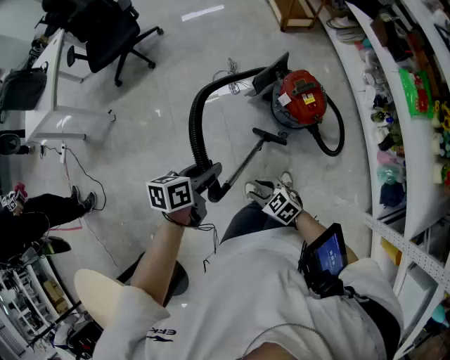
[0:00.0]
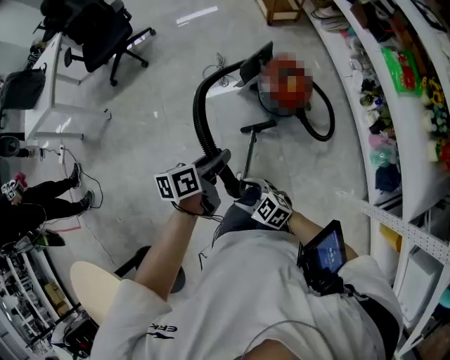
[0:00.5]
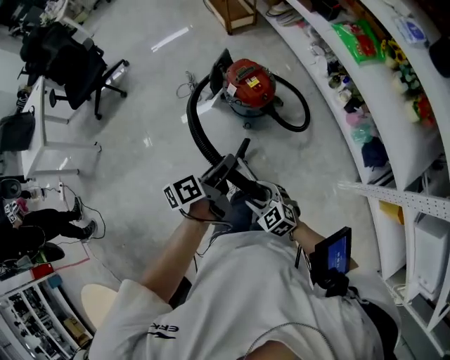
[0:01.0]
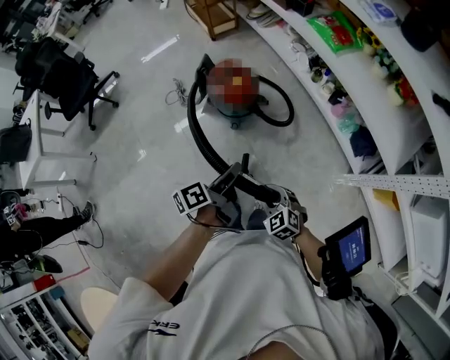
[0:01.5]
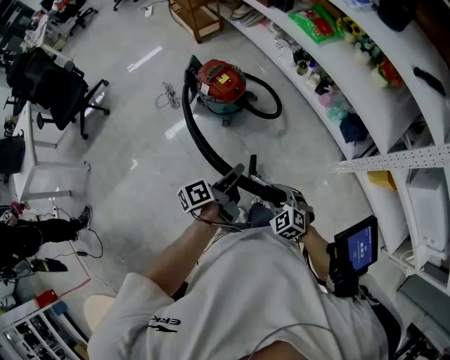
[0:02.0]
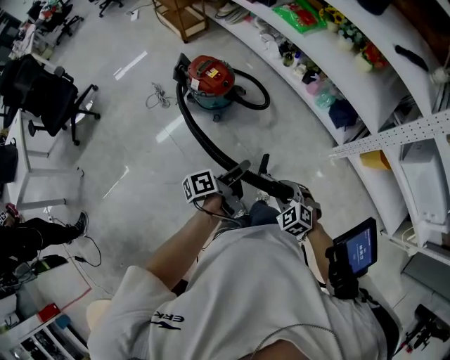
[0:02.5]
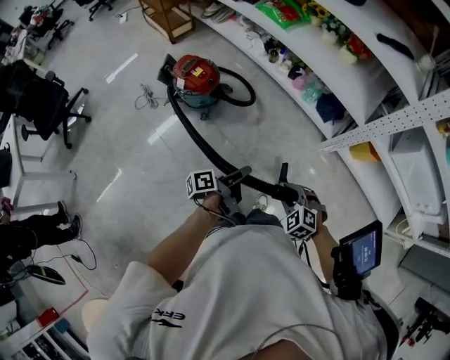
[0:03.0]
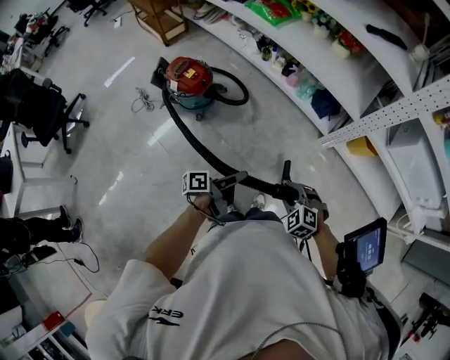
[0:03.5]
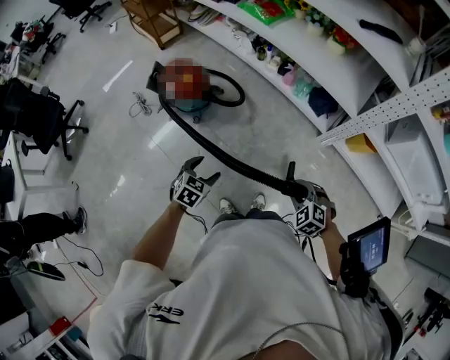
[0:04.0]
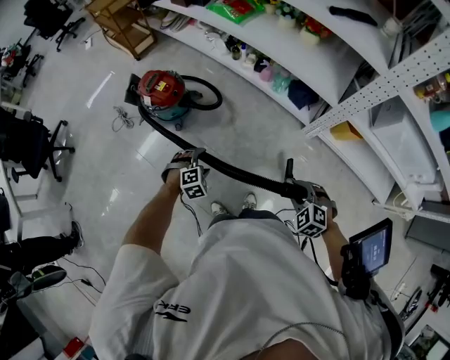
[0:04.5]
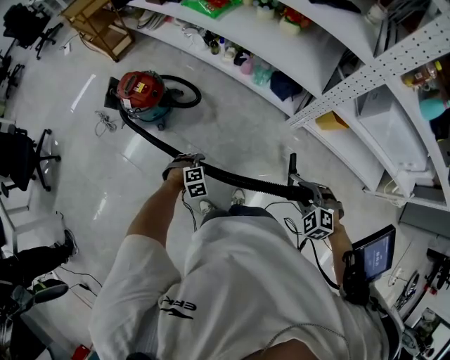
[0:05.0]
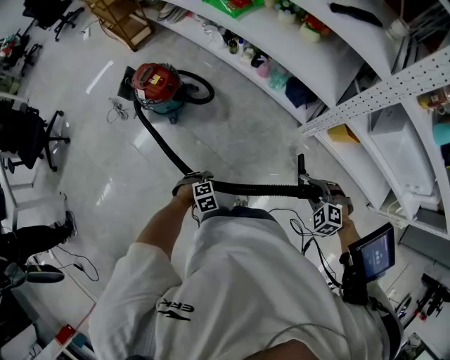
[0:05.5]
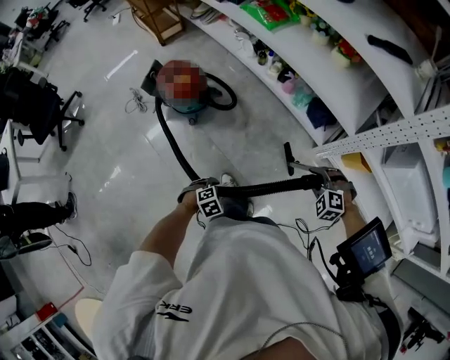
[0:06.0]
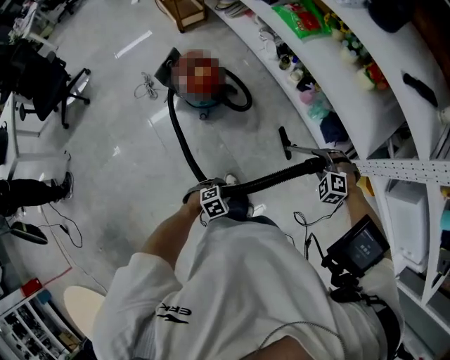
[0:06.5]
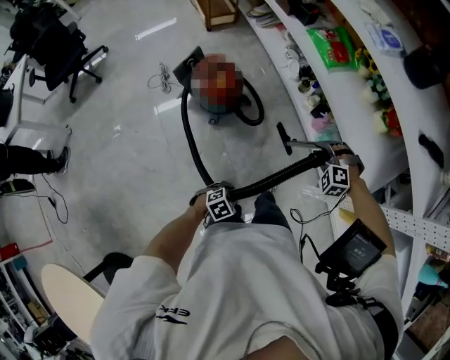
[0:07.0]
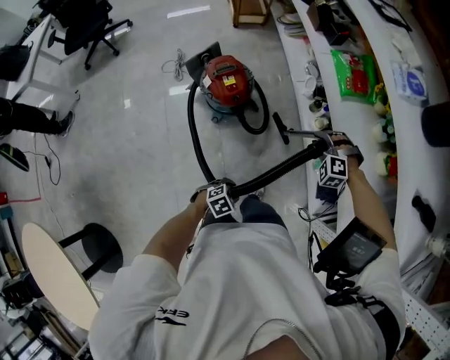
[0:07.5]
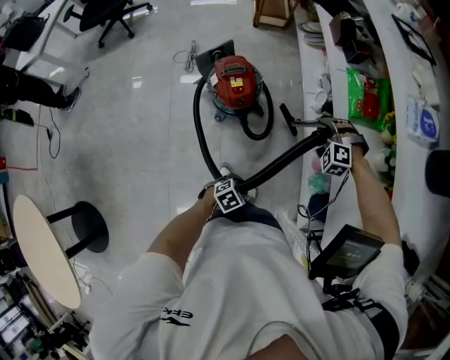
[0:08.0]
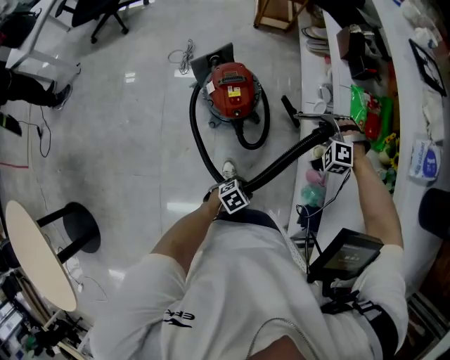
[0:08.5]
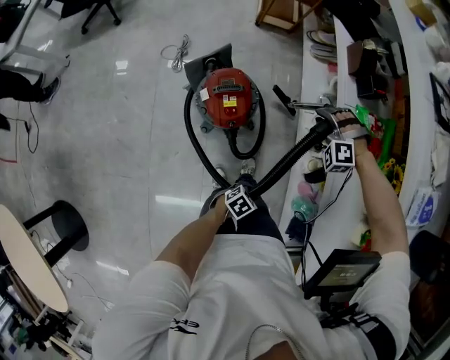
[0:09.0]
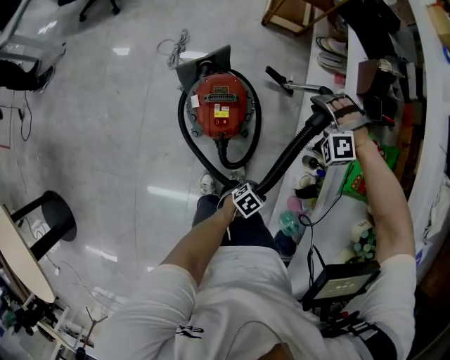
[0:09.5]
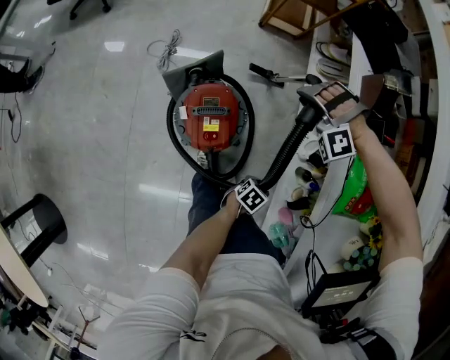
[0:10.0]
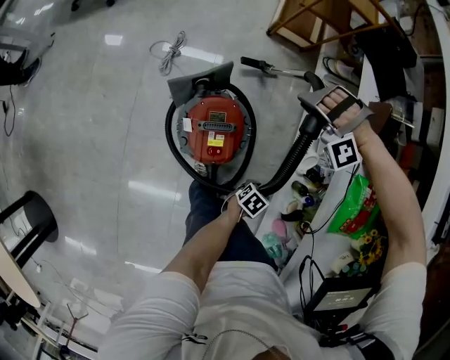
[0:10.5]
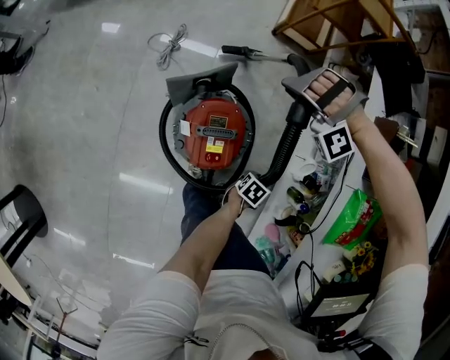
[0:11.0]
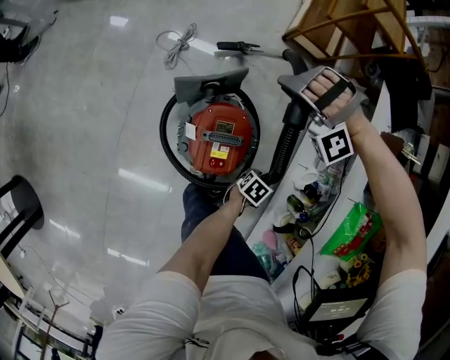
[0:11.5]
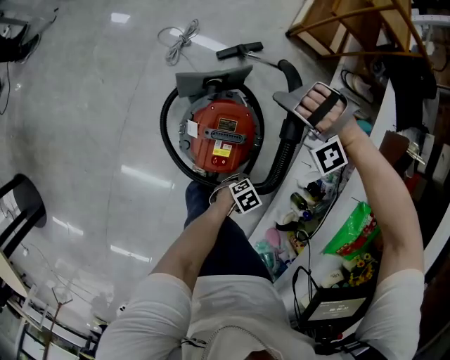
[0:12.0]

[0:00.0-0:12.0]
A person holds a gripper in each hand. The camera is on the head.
0.0 to 2.0 s: The left gripper moves about 35 cm, and changes its angle by roughly 30 degrees. The right gripper moves about 35 cm, rotates approximately 40 degrees, and opens and closes again.
2.0 to 4.0 s: The left gripper is displaced downward and backward by about 10 cm, moves about 15 cm to the right and comes back, twists roughly 90 degrees clockwise, seen from behind, and opens. The right gripper goes roughly 20 cm to the right.
4.0 to 6.0 s: The right gripper shifts by some 15 cm, and swivels some 20 degrees. The left gripper travels downward by roughly 10 cm, and changes its angle by roughly 40 degrees.
6.0 to 8.0 s: The left gripper shifts by some 30 cm, and rotates around the line of its fingers by some 50 degrees, counterclockwise from behind, while the right gripper shifts by roughly 60 cm, and rolls counterclockwise, seen from behind, by approximately 40 degrees.
8.0 to 10.0 s: The right gripper moves to the left and forward, about 40 cm, and rotates approximately 40 degrees. The left gripper is displaced forward by roughly 40 cm, and rotates some 30 degrees.
10.0 to 12.0 s: The right gripper moves approximately 20 cm, and swivels some 30 degrees; the left gripper ends up roughly 15 cm from where it was.

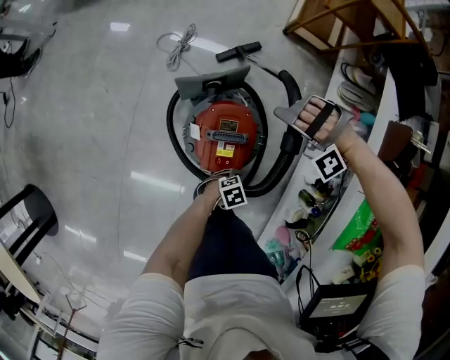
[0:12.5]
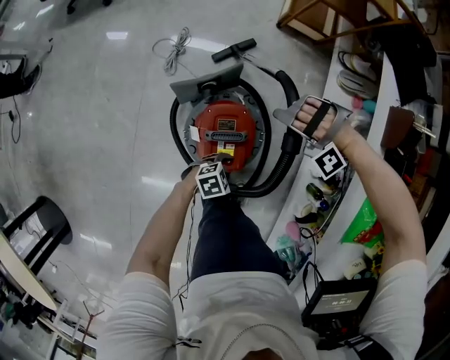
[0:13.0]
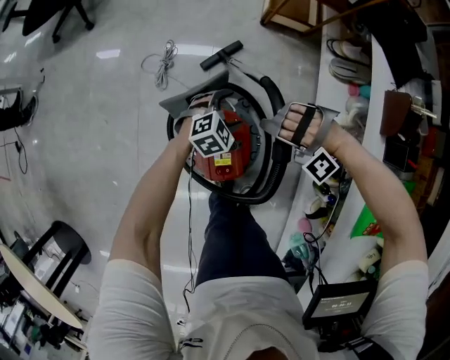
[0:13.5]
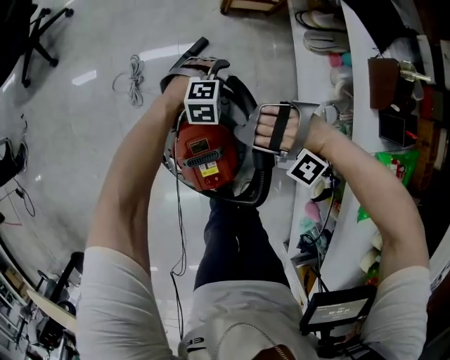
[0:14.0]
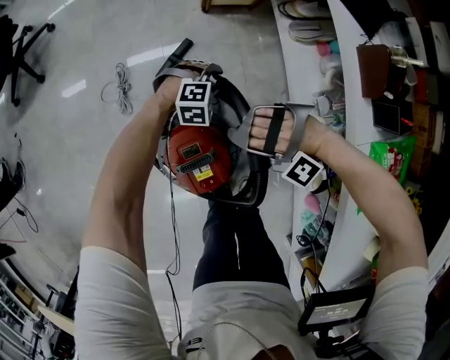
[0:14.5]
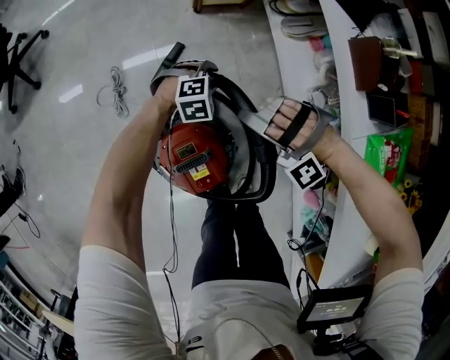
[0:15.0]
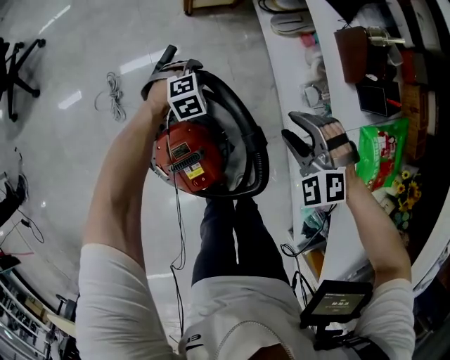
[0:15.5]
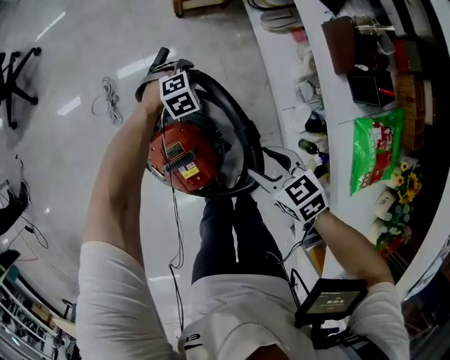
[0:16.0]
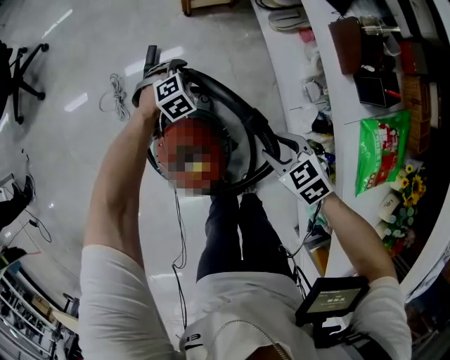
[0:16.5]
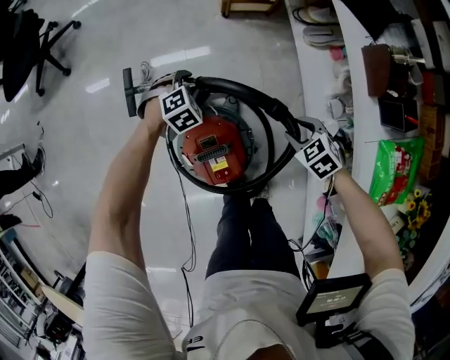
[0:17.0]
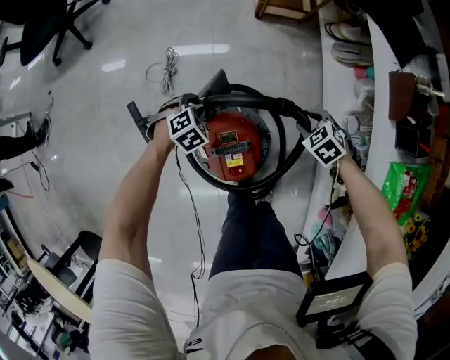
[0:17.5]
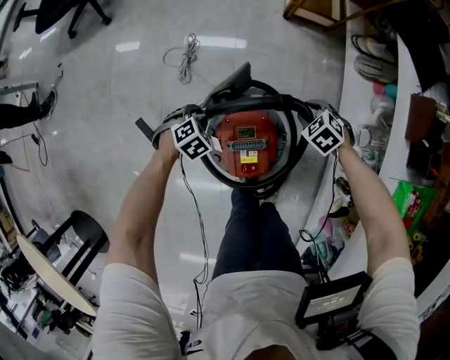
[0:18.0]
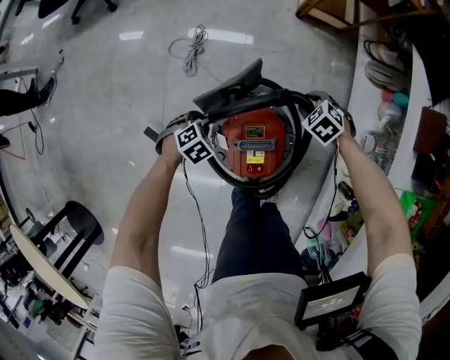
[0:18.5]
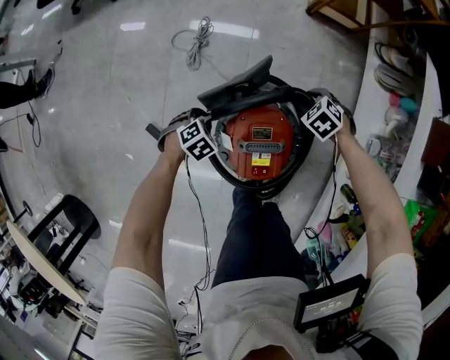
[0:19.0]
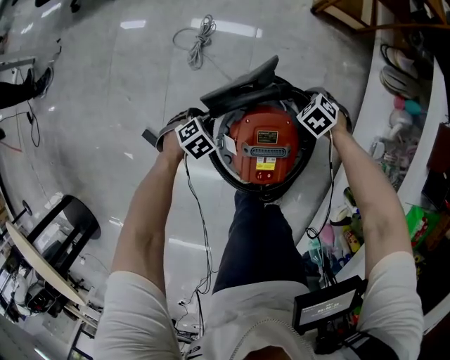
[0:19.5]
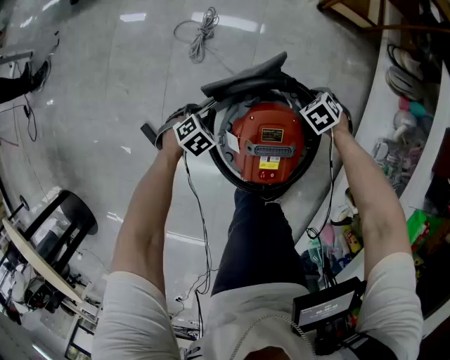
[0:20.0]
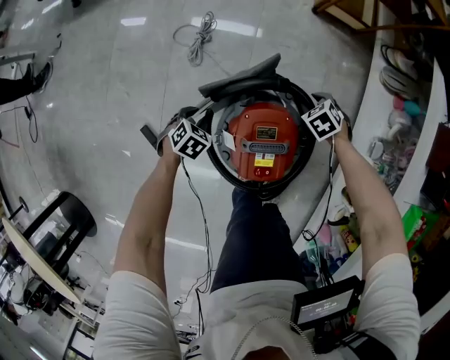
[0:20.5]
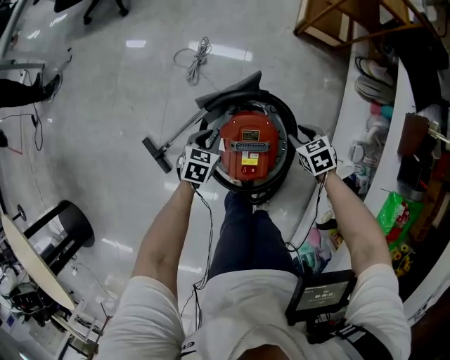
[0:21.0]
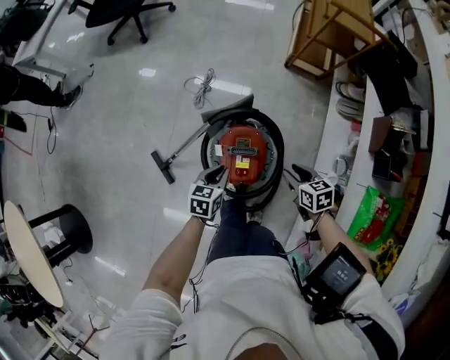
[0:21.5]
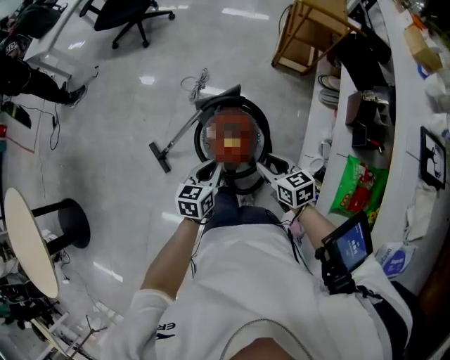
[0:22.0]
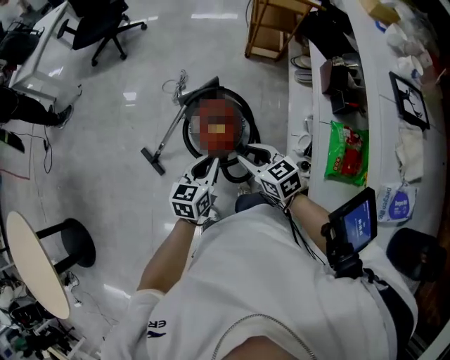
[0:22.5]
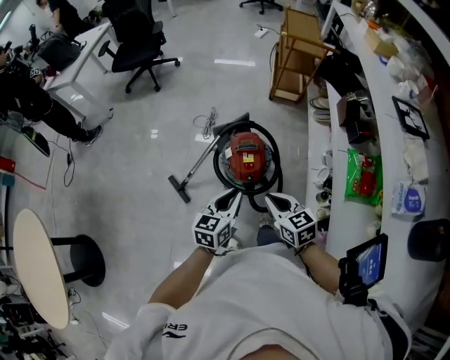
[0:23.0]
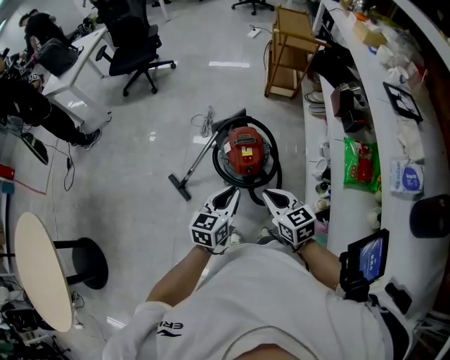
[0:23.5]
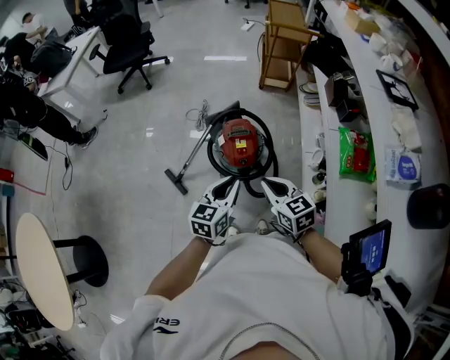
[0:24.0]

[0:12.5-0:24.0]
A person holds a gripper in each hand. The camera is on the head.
12.5 to 14.5 s: The left gripper ends up approximately 40 cm from where it was, twists approximately 60 degrees clockwise, seen from behind, and closes its fingers.
14.5 to 16.5 s: The left gripper changes its angle by about 20 degrees, while the right gripper ends up approximately 15 cm from where it was, and twists roughly 130 degrees clockwise, seen from behind.
16.5 to 18.5 s: The right gripper changes place by some 25 cm, and rotates some 40 degrees, while the left gripper changes place by approximately 35 cm, and swivels about 40 degrees.
18.5 to 20.0 s: The grippers both shift downward by about 10 cm.
20.0 to 22.0 s: The grippers both shift upward by roughly 50 cm. The left gripper points its fingers roughly 50 degrees further upward; the right gripper points its fingers approximately 40 degrees further upward.
22.0 to 24.0 s: The right gripper is displaced backward, upward and to the left by about 30 cm, and closes up; the left gripper heads backward and upward, covering some 25 cm, and turns by some 20 degrees.

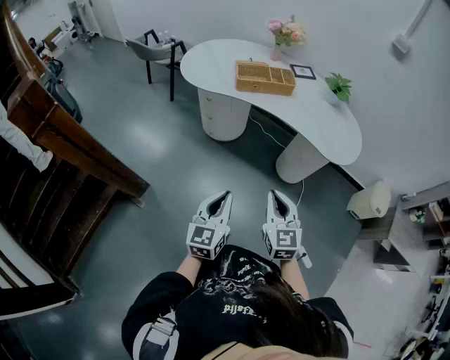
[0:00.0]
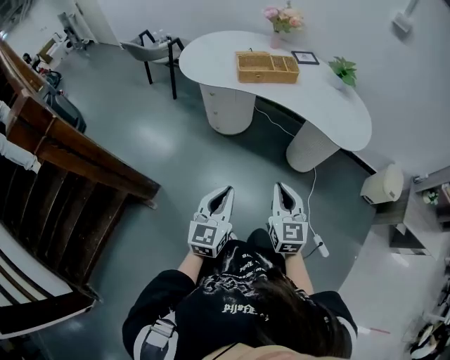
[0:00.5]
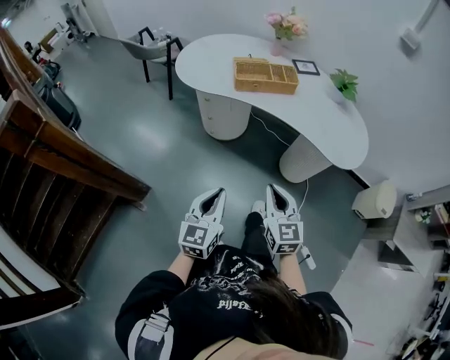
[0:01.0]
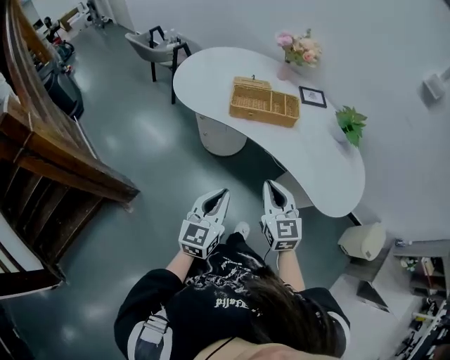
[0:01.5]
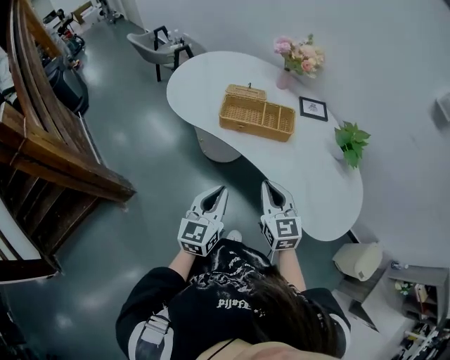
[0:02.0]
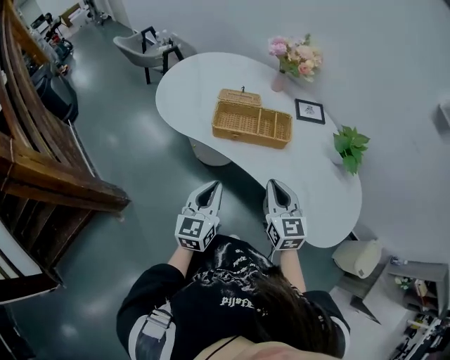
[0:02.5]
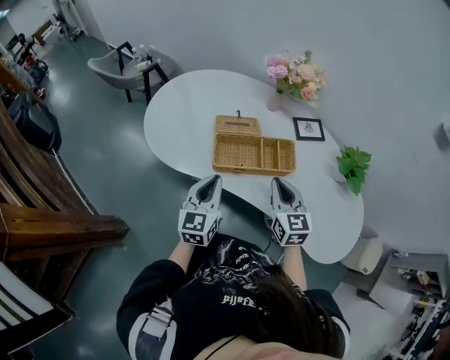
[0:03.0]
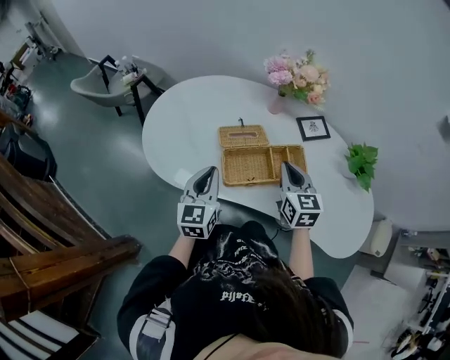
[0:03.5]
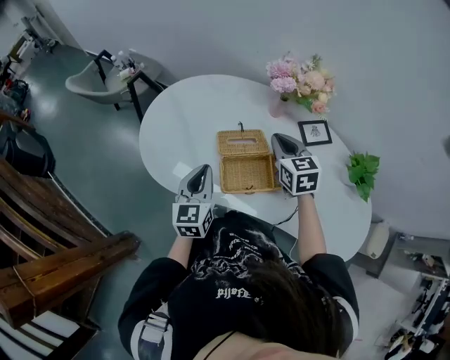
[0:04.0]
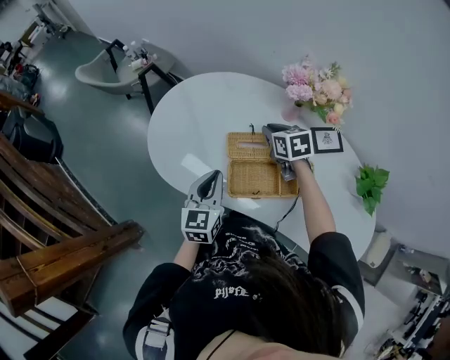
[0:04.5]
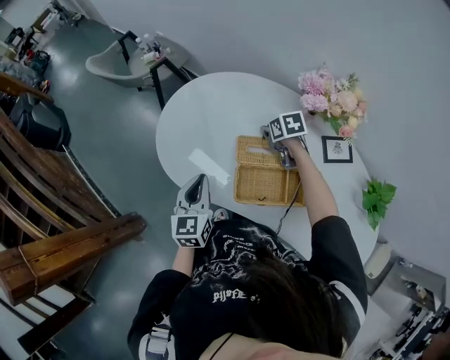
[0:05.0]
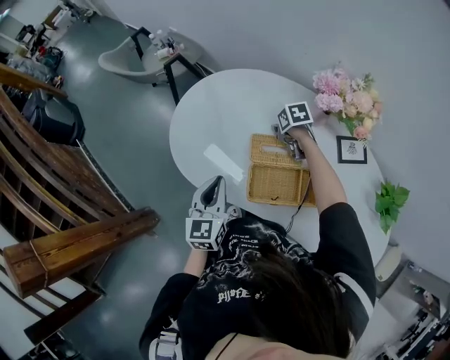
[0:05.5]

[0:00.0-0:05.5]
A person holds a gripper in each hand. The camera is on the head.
0.0 to 2.0 s: The two grippers go roughly 35 cm forward.
2.0 to 3.5 s: The left gripper travels forward and to the left by roughly 40 cm; the right gripper heads forward, covering approximately 30 cm, and changes its angle by about 30 degrees.
3.5 to 5.5 s: The right gripper shifts by approximately 35 cm, points its fingers approximately 40 degrees further downward, and opens its fingers; the left gripper moves approximately 5 cm.
